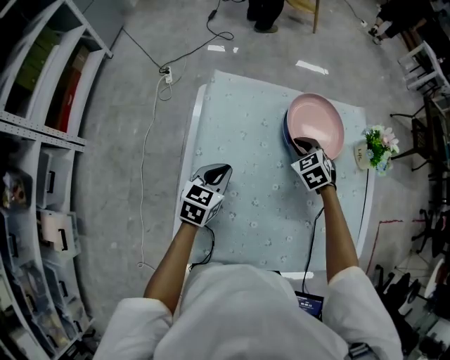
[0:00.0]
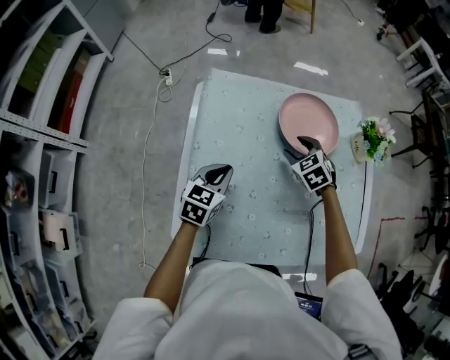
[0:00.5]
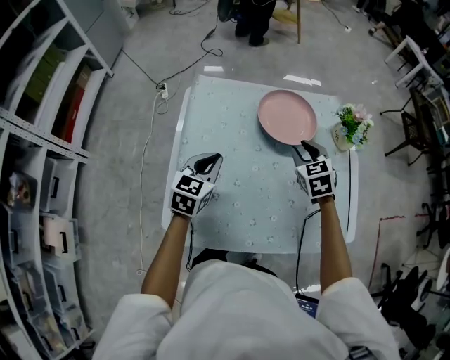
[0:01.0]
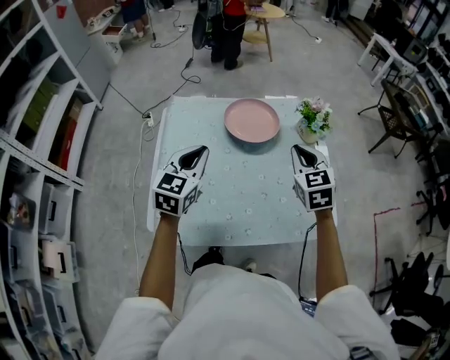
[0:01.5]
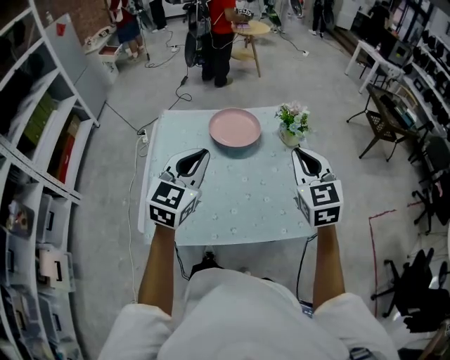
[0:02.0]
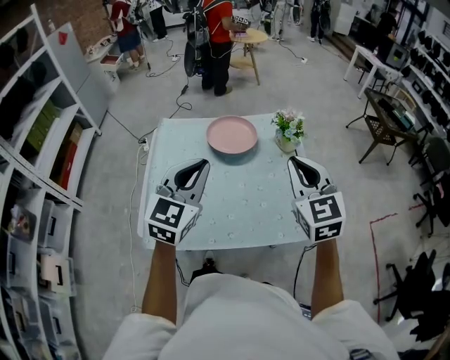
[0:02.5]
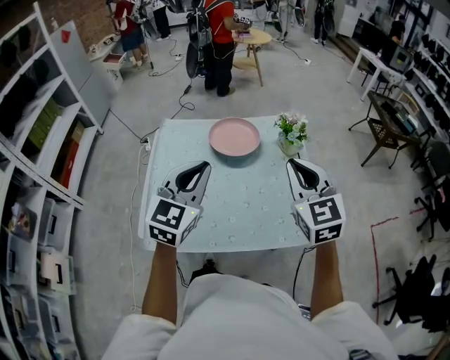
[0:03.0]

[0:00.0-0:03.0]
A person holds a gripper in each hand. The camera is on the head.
0:00.0 to 0:01.5: Both grippers move upward, to the right and backward, some 30 cm. The left gripper turns by approximately 20 degrees, while the right gripper swivels about 30 degrees, and opens and closes again.
0:01.5 to 0:03.0: The left gripper travels upward, to the right and backward by roughly 15 cm. The right gripper moves upward and backward, approximately 15 cm.

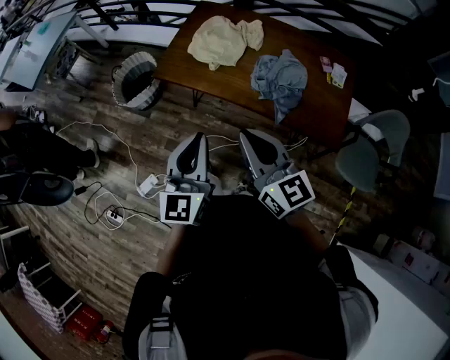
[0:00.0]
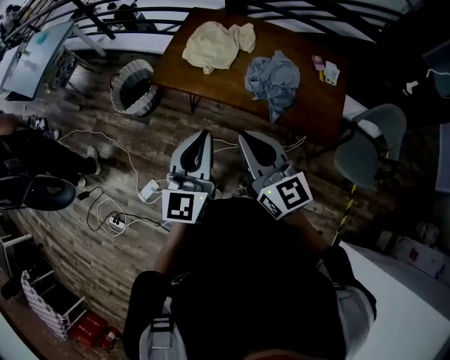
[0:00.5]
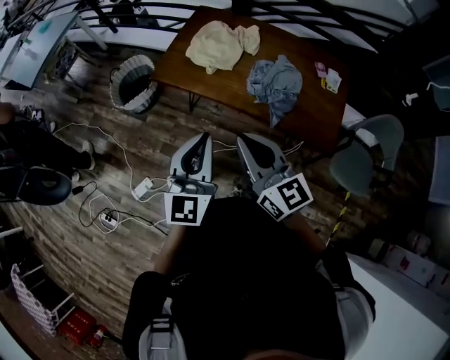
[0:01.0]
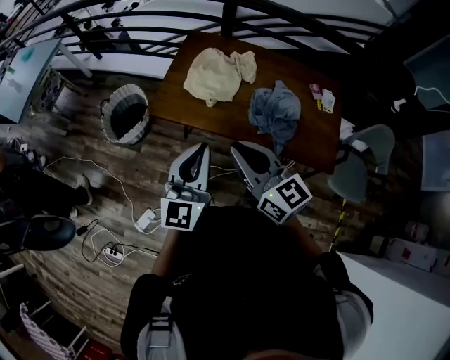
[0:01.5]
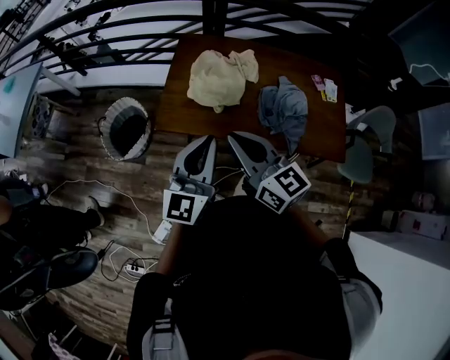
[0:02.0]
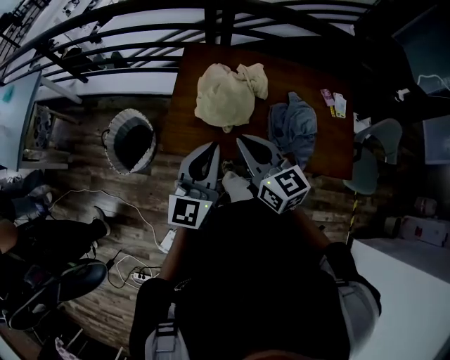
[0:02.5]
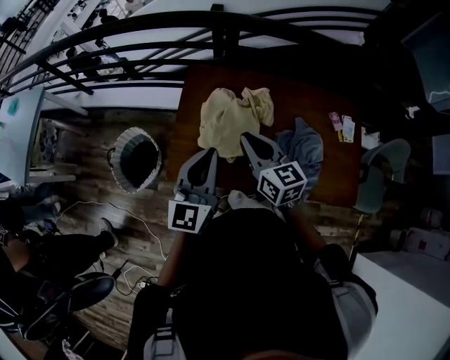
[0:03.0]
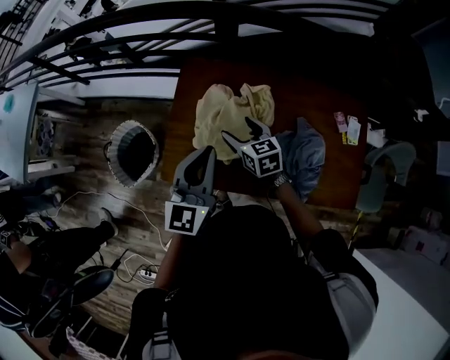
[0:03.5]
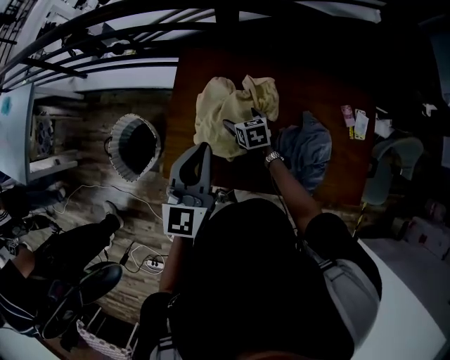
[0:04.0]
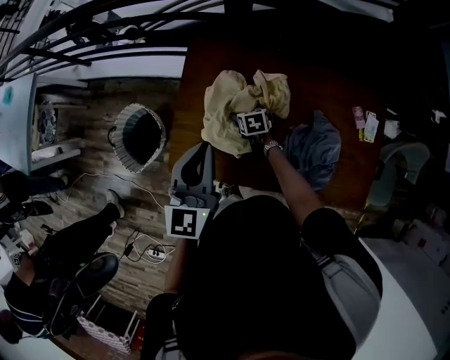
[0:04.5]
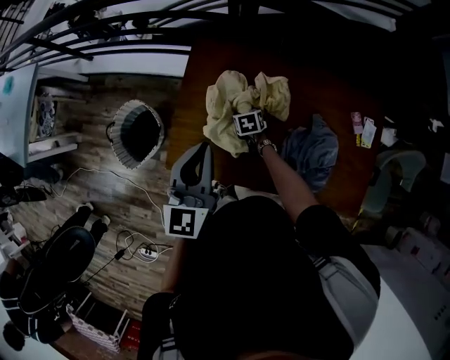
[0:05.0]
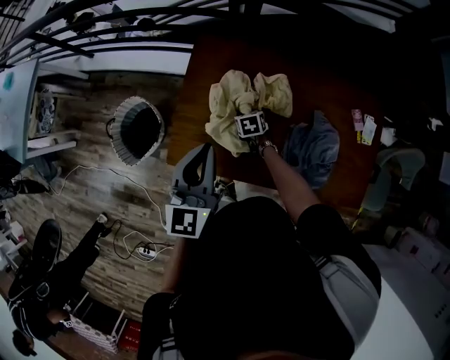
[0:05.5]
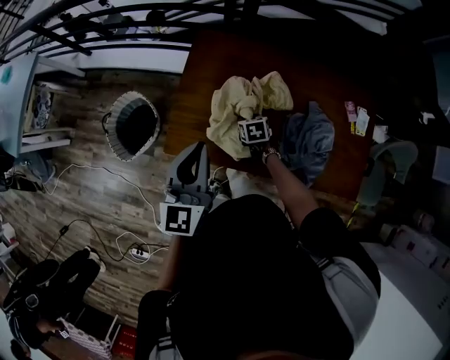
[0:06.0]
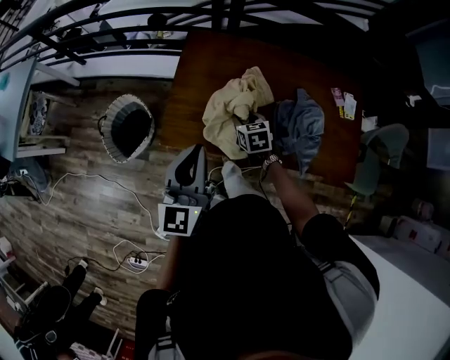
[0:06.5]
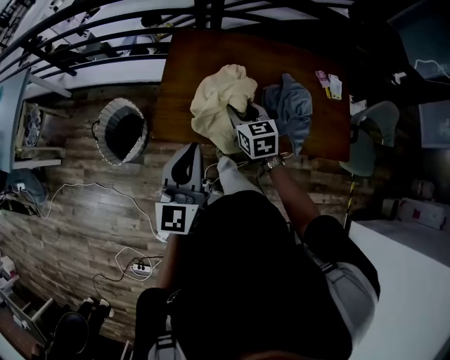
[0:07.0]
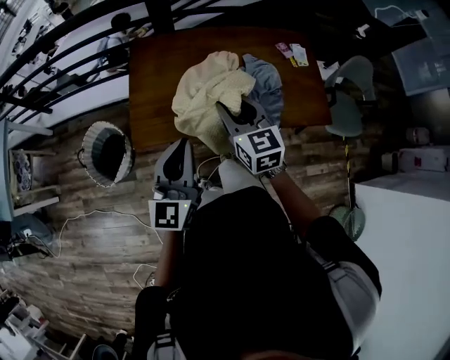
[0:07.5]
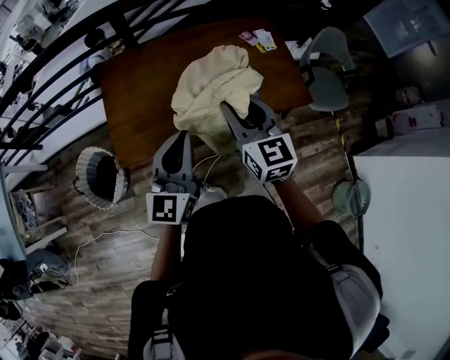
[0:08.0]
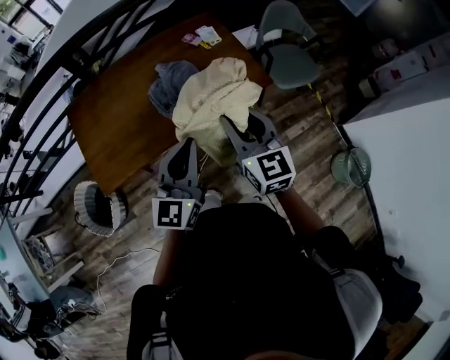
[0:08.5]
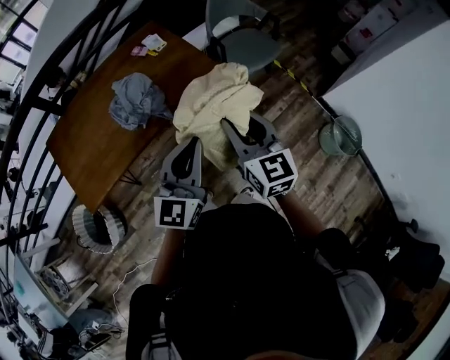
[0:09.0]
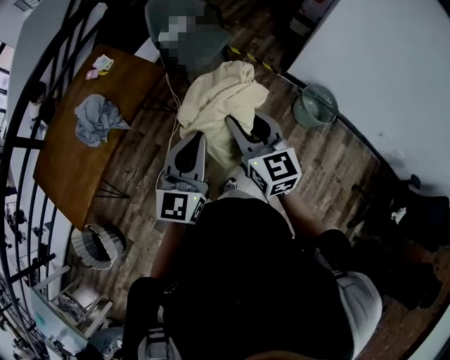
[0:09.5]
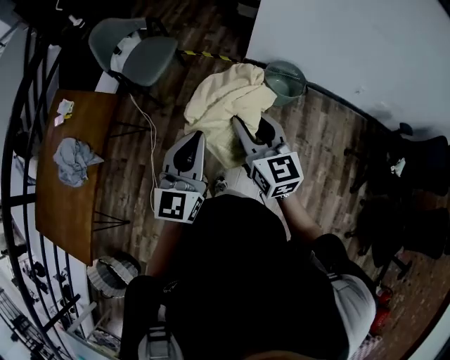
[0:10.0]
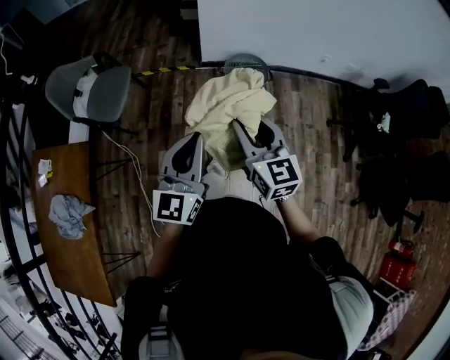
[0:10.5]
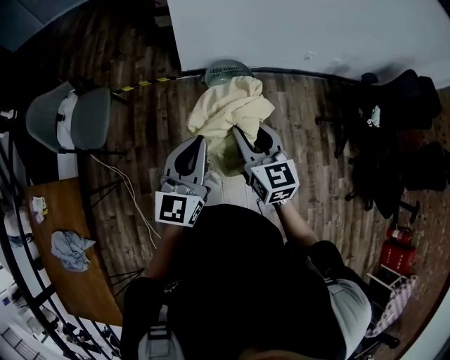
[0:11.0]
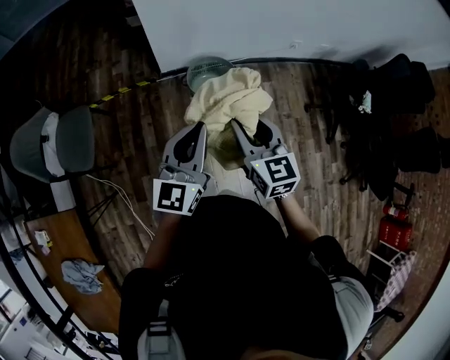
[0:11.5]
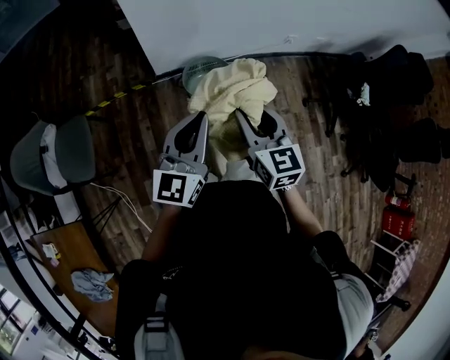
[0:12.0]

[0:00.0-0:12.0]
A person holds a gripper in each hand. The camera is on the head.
0:00.0 to 0:02.0: The left gripper goes about 20 cm forward, and rotates some 20 degrees, while the right gripper is displaced forward and to the left by some 20 cm.
0:02.0 to 0:04.0: The right gripper moves forward and downward, approximately 50 cm, points its fingers about 50 degrees further downward, and opens; the left gripper is displaced forward by approximately 25 cm.
0:04.0 to 0:06.0: The right gripper goes some 10 cm backward and downward, and closes its fingers. The left gripper goes approximately 10 cm backward and to the left.
0:06.0 to 0:08.0: The left gripper shifts by approximately 20 cm, and rotates approximately 30 degrees; the right gripper moves upward, approximately 35 cm, and points its fingers some 50 degrees further upward.
0:08.0 to 0:10.0: The pair of grippers is taken some 70 cm. The right gripper changes its angle by some 60 degrees, while the left gripper swivels roughly 60 degrees.
0:10.0 to 0:12.0: The right gripper changes place by some 35 cm, and turns by about 30 degrees; the left gripper changes place by some 40 cm, and turns by some 30 degrees.

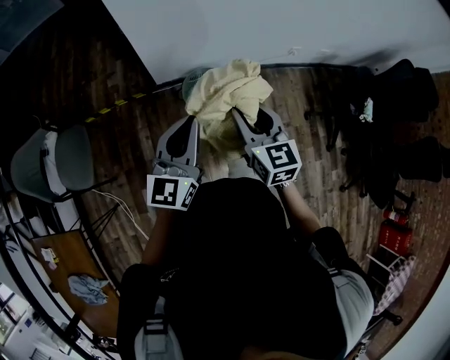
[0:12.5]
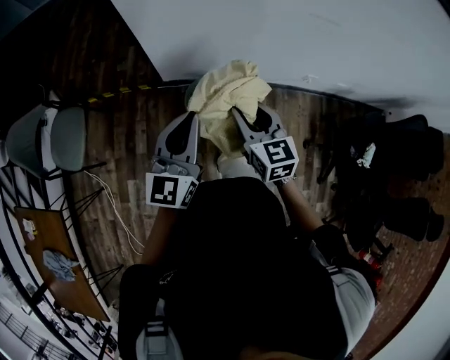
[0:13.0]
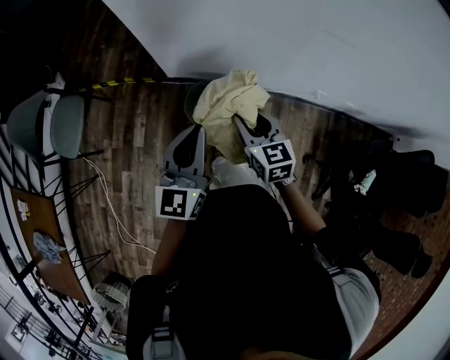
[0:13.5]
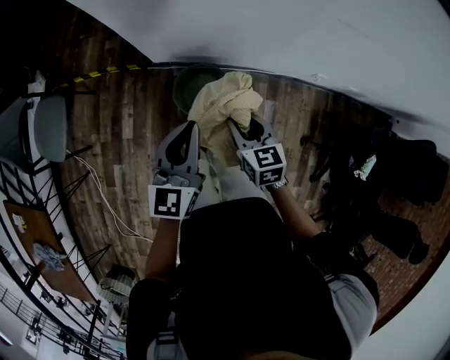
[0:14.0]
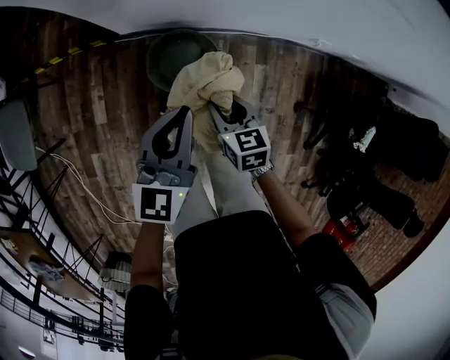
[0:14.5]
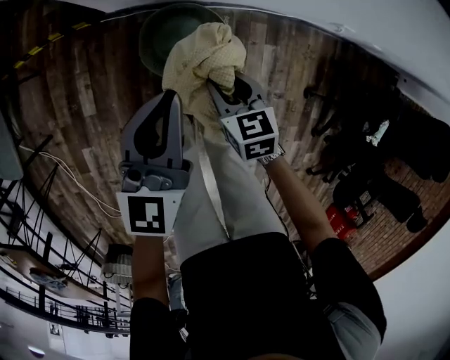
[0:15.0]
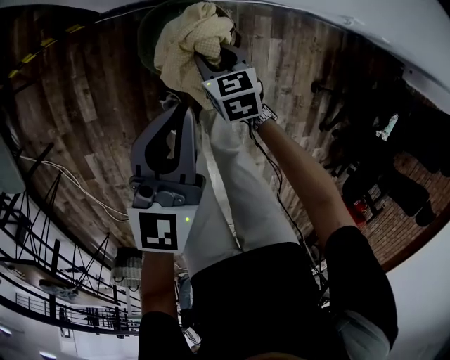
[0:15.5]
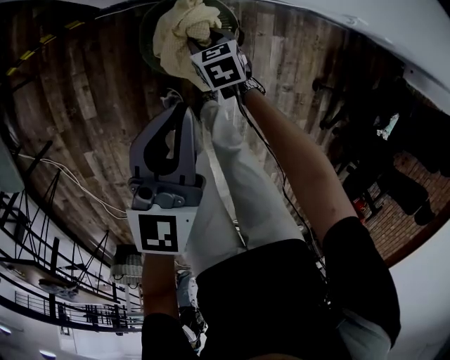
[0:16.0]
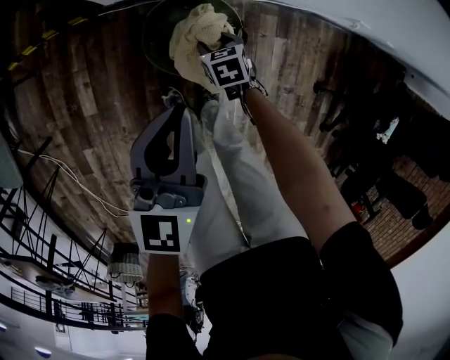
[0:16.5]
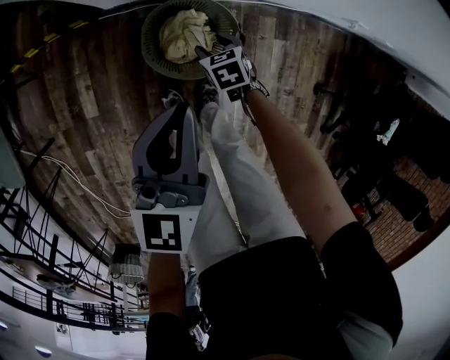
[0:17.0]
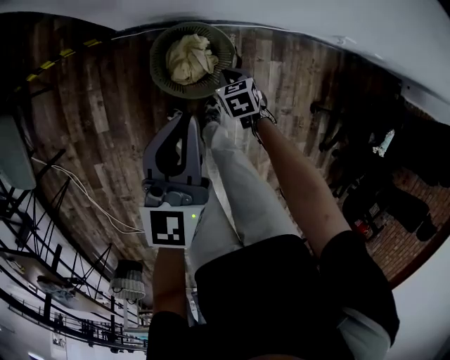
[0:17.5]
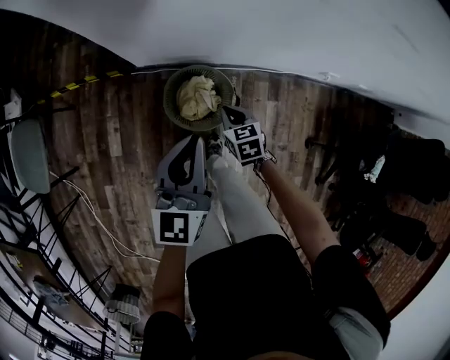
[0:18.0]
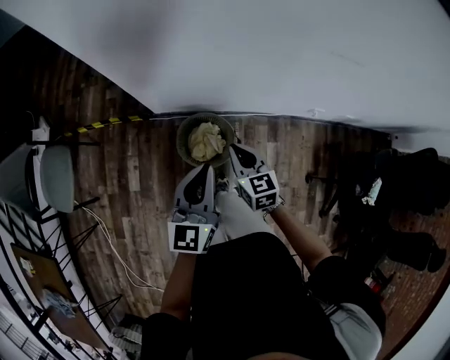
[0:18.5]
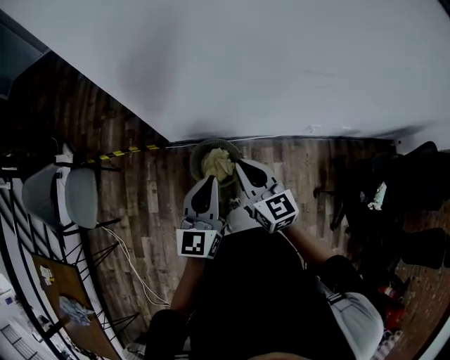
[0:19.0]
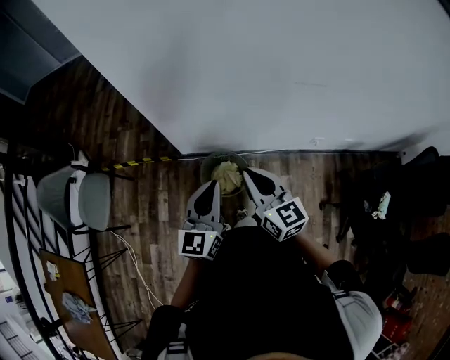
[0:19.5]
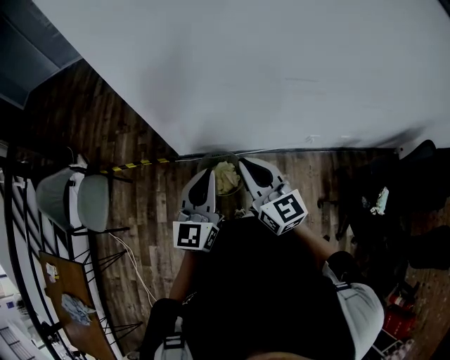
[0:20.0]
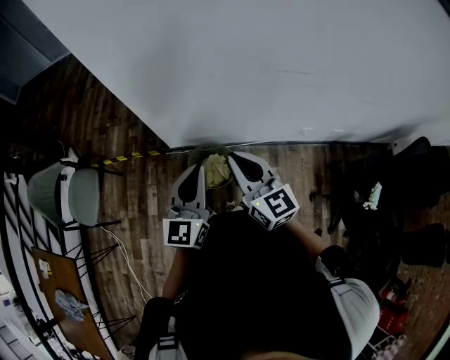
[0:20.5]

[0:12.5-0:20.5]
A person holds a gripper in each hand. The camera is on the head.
0:12.5 to 0:14.5: The left gripper is displaced downward, forward and to the right by about 30 cm, while the right gripper shifts about 35 cm downward and forward, and swivels about 30 degrees.
0:14.5 to 0:16.5: The left gripper goes roughly 15 cm downward and to the left. Meanwhile the right gripper is displaced downward by roughly 30 cm.
0:16.5 to 0:18.5: The left gripper travels upward by about 20 cm; the right gripper goes about 40 cm upward, tips its fingers upward by some 30 degrees, and closes.
0:18.5 to 0:20.5: The left gripper goes roughly 15 cm upward; the right gripper travels upward by roughly 30 cm, and turns by about 30 degrees.

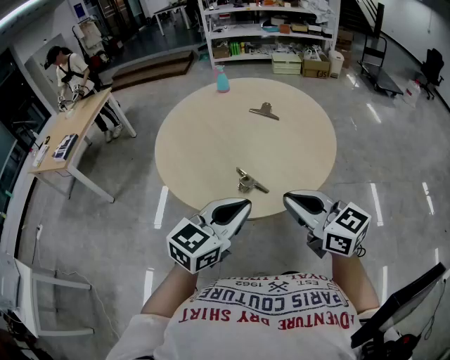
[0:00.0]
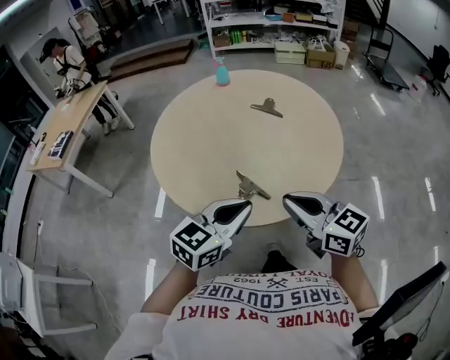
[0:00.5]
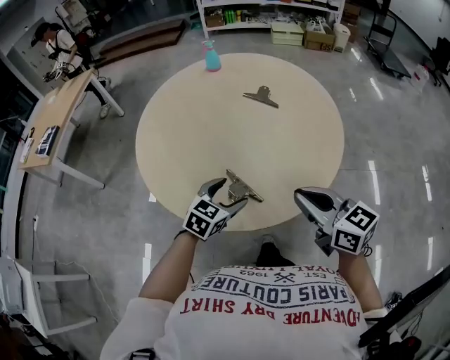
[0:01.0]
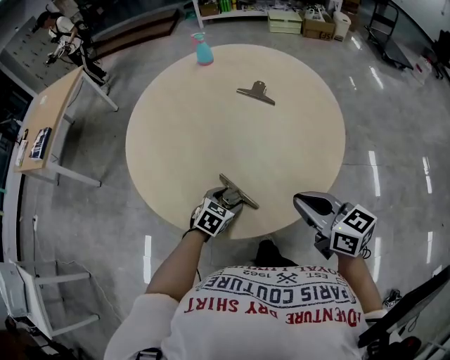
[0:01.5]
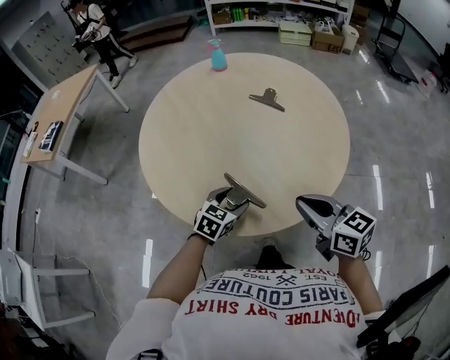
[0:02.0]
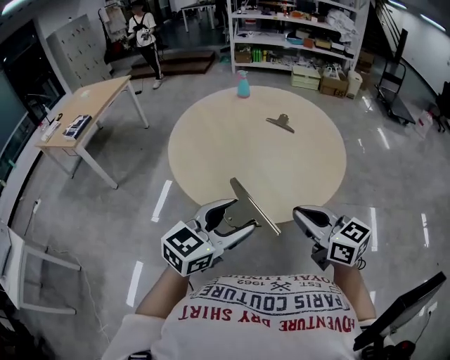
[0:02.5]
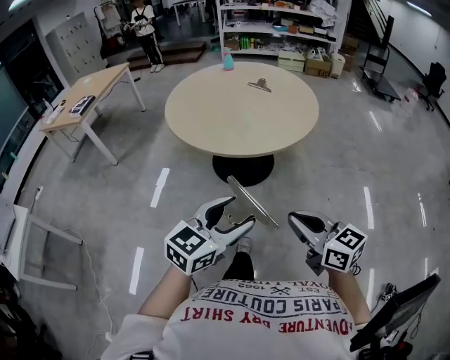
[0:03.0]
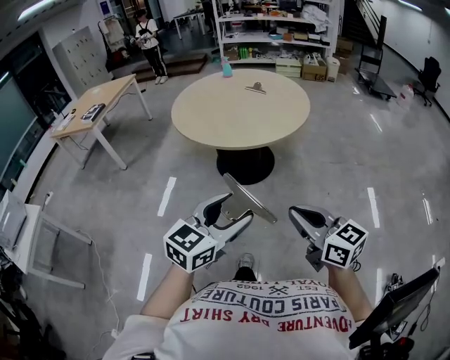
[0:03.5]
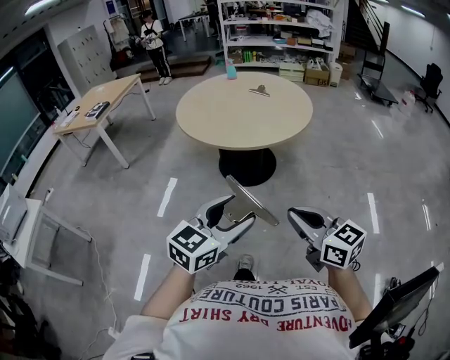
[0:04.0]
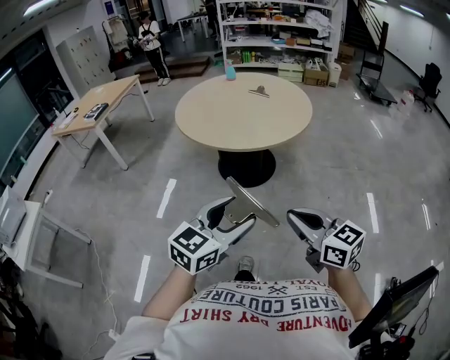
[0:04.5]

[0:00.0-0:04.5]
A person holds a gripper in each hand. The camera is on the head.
0:00.0 to 0:02.0: The left gripper heads downward and forward, covering roughly 30 cm, turns by about 30 degrees, and opens; the right gripper travels forward, downward and to the right by roughly 15 cm.
0:02.0 to 0:04.5: The pair of grippers is taken backward, approximately 60 cm. The left gripper is displaced upward by some 25 cm, and turns by roughly 30 degrees.
